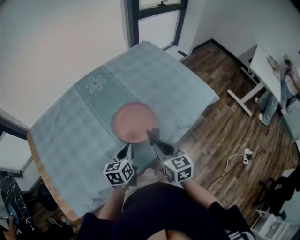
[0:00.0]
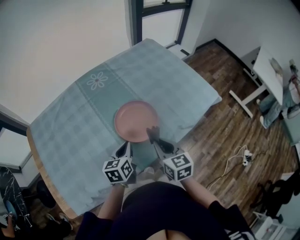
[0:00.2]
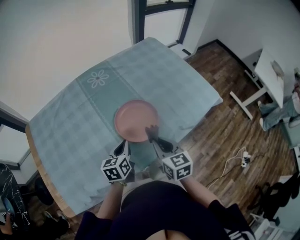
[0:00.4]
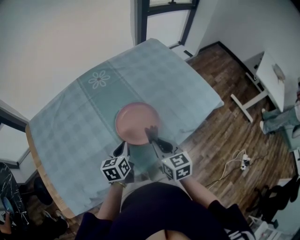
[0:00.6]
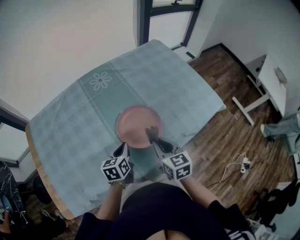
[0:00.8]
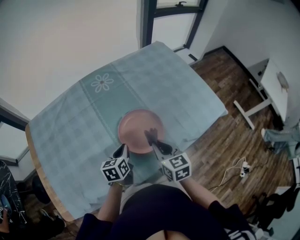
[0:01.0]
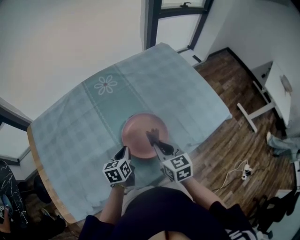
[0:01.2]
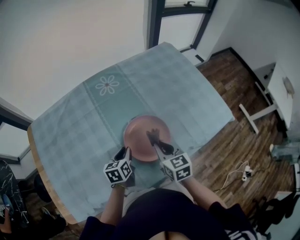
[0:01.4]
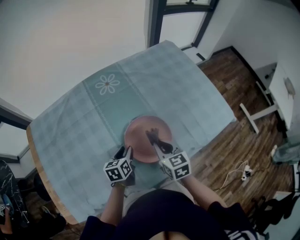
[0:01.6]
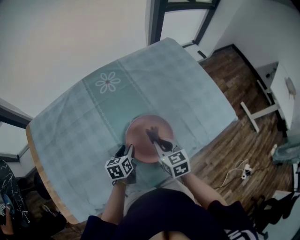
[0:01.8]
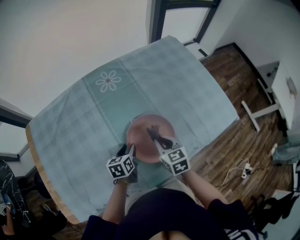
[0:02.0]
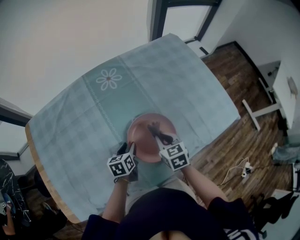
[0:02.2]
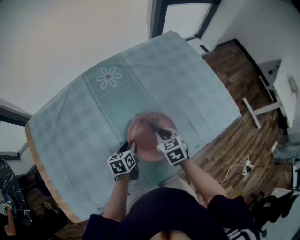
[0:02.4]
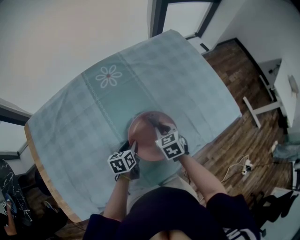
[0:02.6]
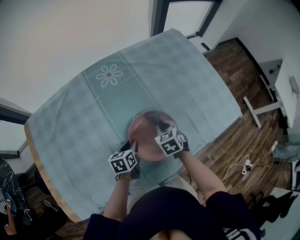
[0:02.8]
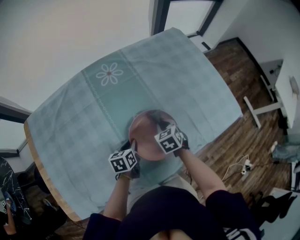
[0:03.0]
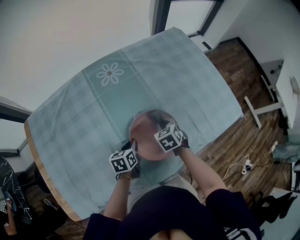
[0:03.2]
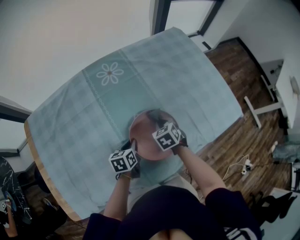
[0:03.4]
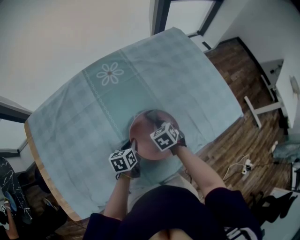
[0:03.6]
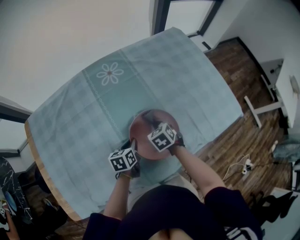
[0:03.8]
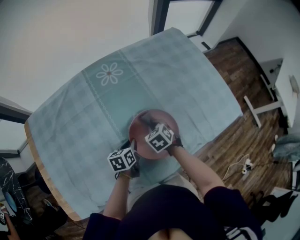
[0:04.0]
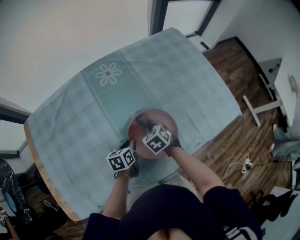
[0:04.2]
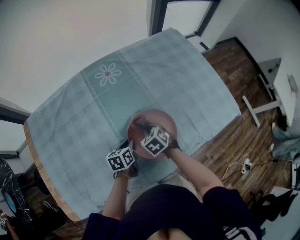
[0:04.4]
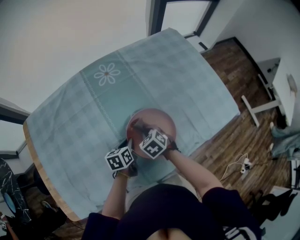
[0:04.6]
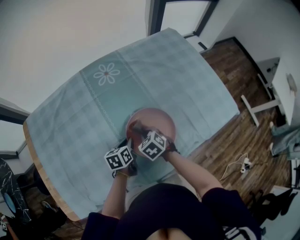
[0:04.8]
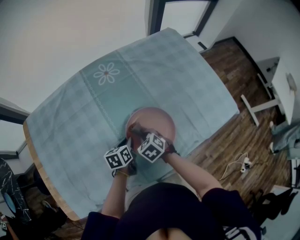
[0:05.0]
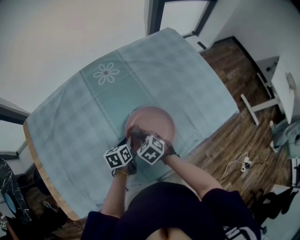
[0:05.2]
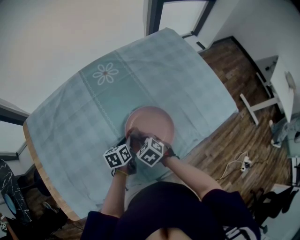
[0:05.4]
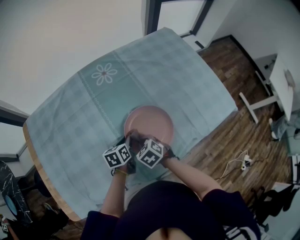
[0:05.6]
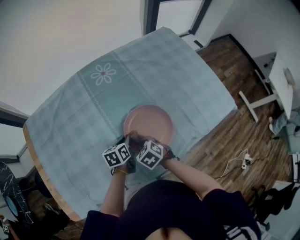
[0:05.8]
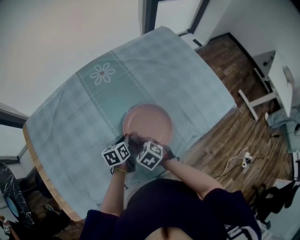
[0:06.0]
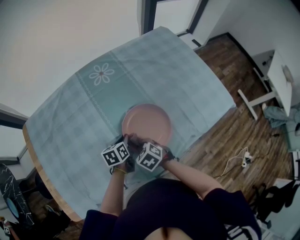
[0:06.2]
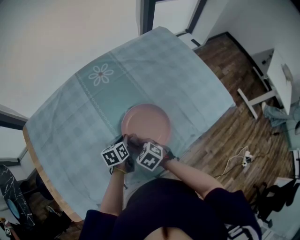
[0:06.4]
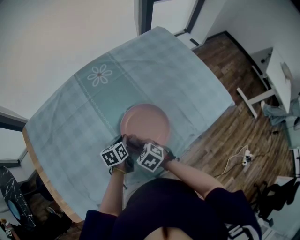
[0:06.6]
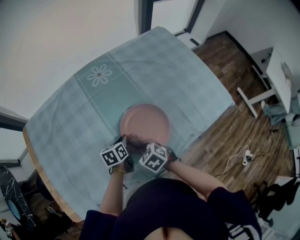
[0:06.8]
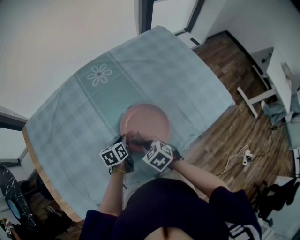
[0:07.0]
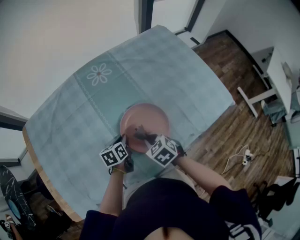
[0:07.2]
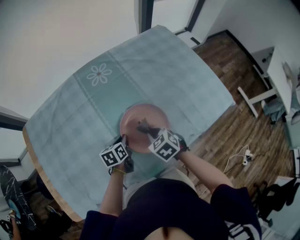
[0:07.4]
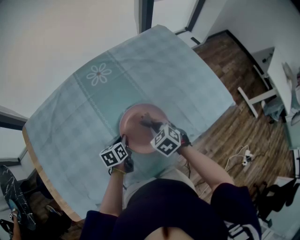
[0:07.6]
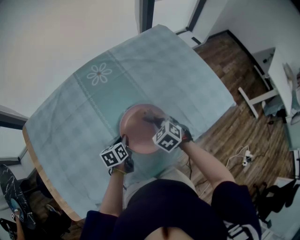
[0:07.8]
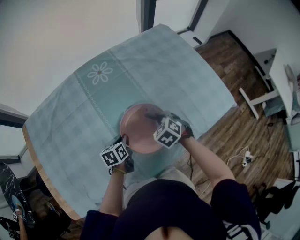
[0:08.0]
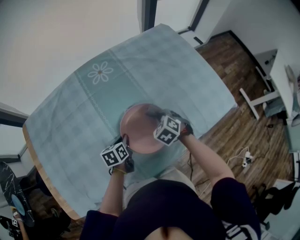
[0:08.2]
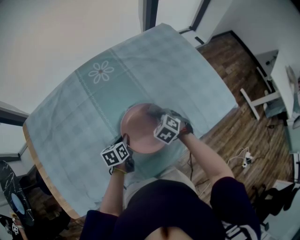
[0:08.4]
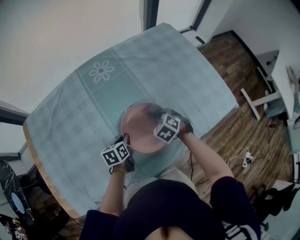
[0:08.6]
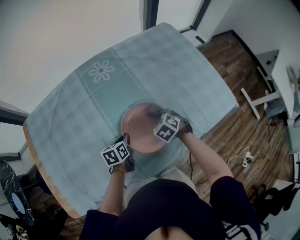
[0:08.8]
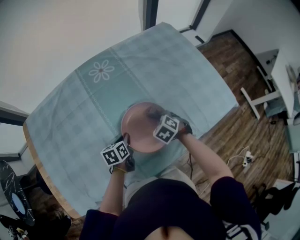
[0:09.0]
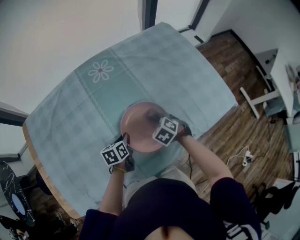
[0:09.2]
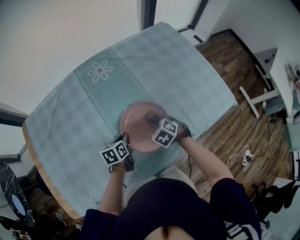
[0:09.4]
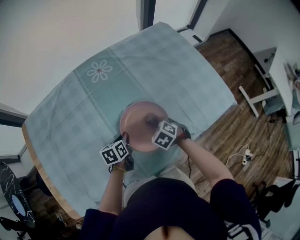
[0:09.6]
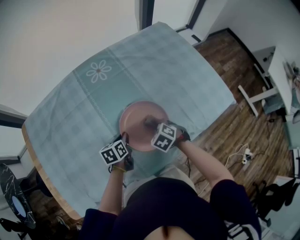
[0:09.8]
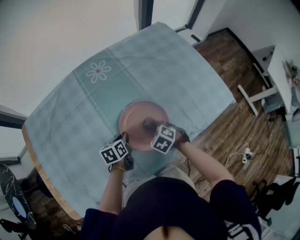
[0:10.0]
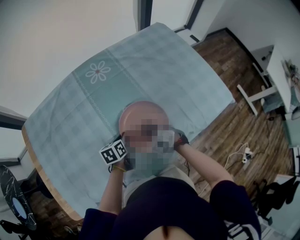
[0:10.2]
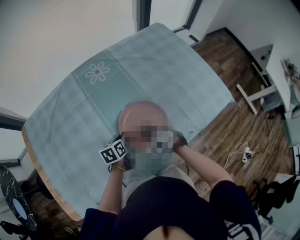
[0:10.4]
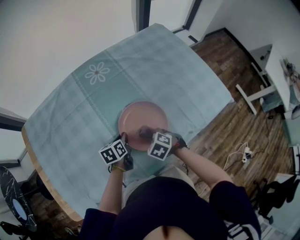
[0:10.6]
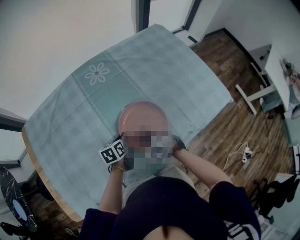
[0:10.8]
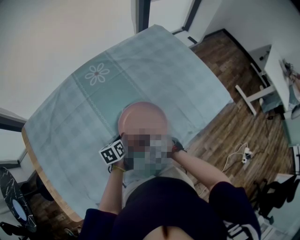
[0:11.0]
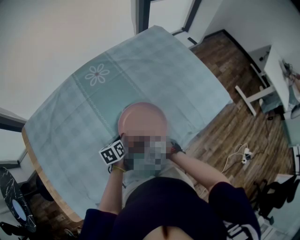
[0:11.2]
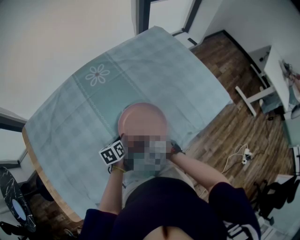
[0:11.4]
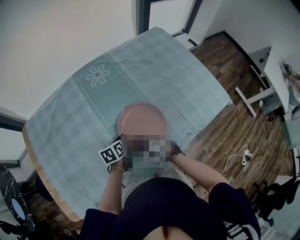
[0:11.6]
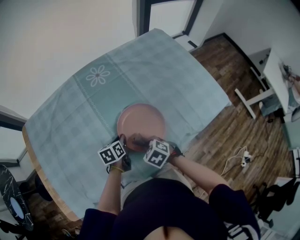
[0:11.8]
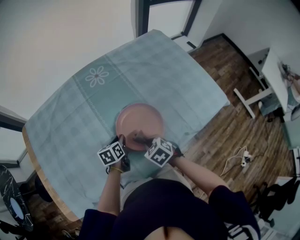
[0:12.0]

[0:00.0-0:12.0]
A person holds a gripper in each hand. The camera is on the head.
0:00.0 to 0:01.6: The right gripper heads forward, covering about 15 cm. The left gripper shifts approximately 15 cm forward, downward and to the left, and opens.
0:01.6 to 0:03.0: The left gripper ends up roughly 5 cm from where it was. Meanwhile the right gripper shifts some 15 cm downward and forward, and turns by roughly 30 degrees.
0:03.0 to 0:04.4: The right gripper travels to the left by about 5 cm.
0:04.4 to 0:06.0: The right gripper shifts roughly 10 cm backward.
0:06.0 to 0:07.6: The right gripper heads to the right and forward, covering some 10 cm.
0:07.6 to 0:09.0: The right gripper moves some 5 cm.
0:09.0 to 0:10.4: The right gripper is displaced backward by roughly 10 cm.
0:10.4 to 0:12.0: The right gripper changes place by roughly 5 cm.

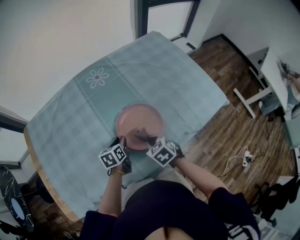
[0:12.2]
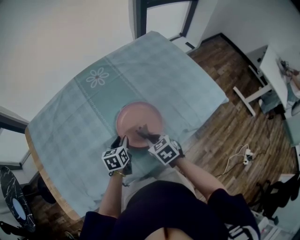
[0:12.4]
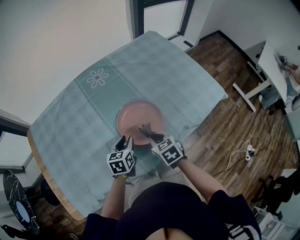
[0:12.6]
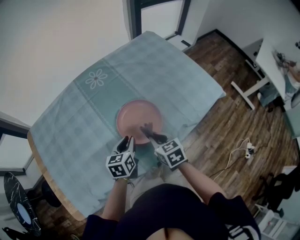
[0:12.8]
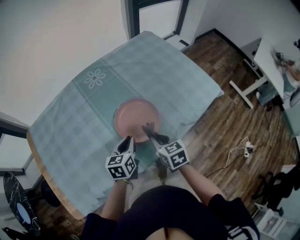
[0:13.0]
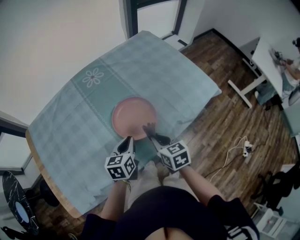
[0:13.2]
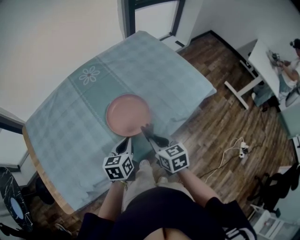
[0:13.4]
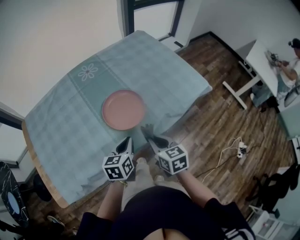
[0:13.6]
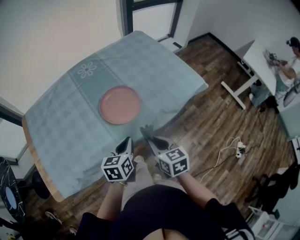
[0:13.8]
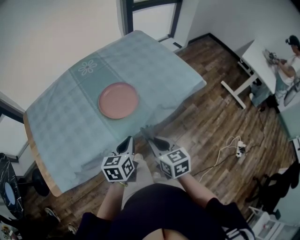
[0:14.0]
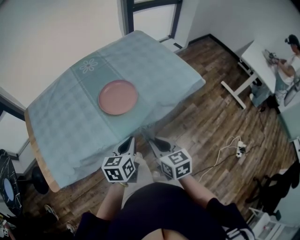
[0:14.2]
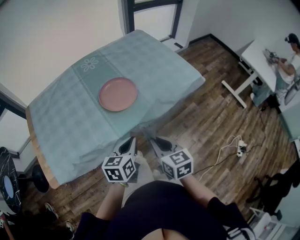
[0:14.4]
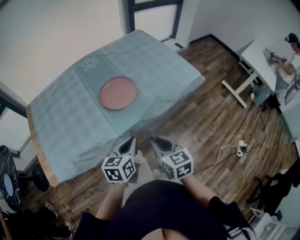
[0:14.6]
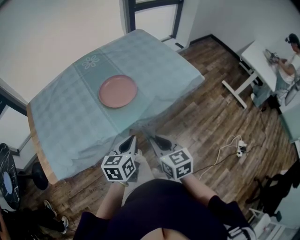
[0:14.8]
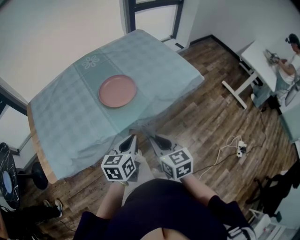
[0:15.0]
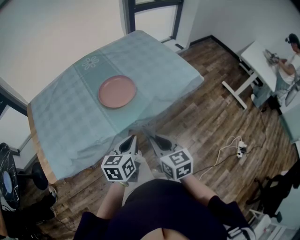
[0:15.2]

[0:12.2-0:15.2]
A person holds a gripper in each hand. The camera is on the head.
0:12.2 to 0:13.8: The grippers both shift backward, upward and to the right by about 25 cm. The left gripper closes. Meanwhile the right gripper changes its angle by some 40 degrees.
0:13.8 to 0:15.2: The right gripper is displaced backward by approximately 10 cm. Meanwhile the left gripper shifts some 15 cm backward and to the right.

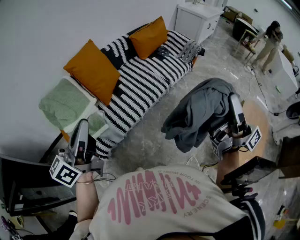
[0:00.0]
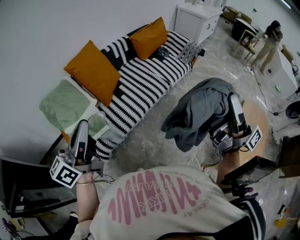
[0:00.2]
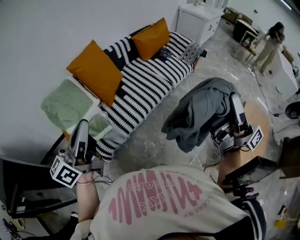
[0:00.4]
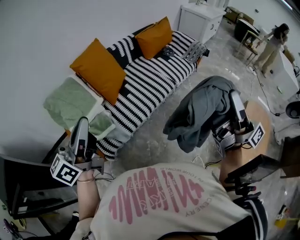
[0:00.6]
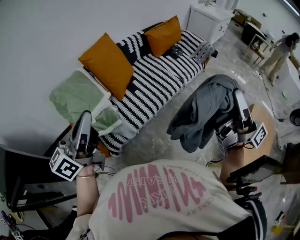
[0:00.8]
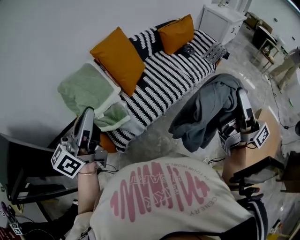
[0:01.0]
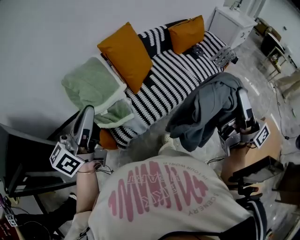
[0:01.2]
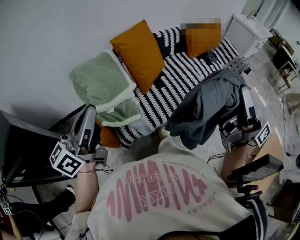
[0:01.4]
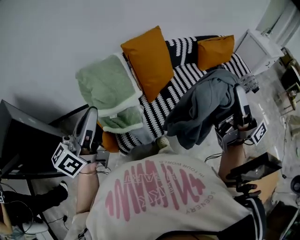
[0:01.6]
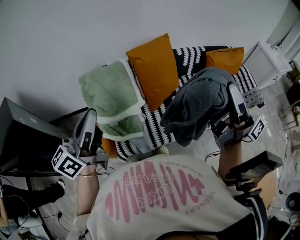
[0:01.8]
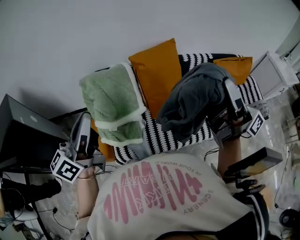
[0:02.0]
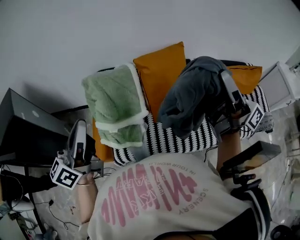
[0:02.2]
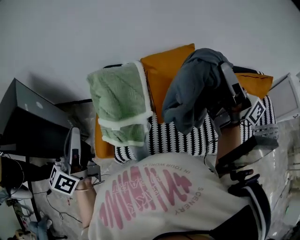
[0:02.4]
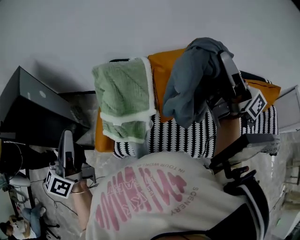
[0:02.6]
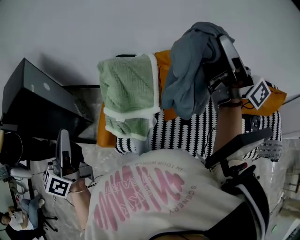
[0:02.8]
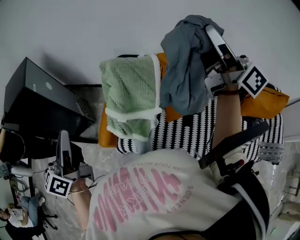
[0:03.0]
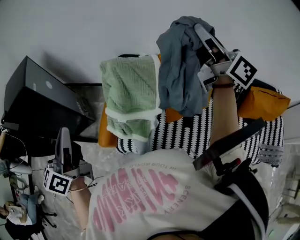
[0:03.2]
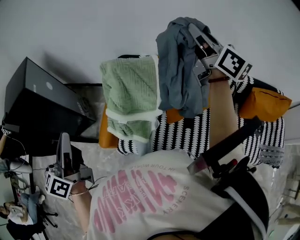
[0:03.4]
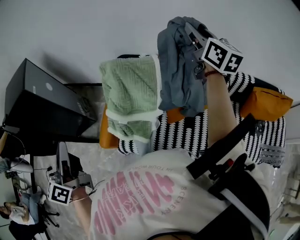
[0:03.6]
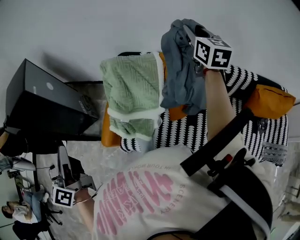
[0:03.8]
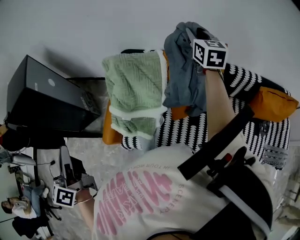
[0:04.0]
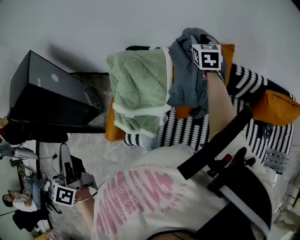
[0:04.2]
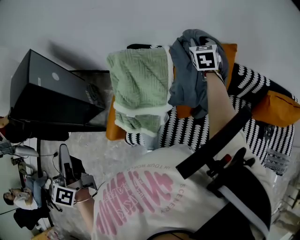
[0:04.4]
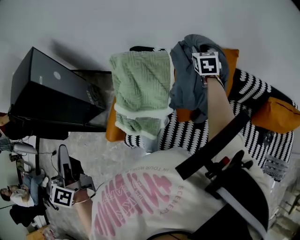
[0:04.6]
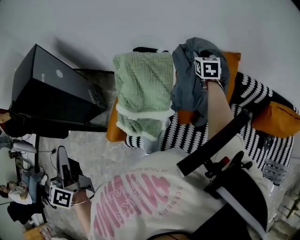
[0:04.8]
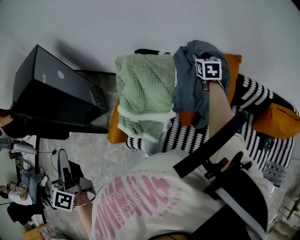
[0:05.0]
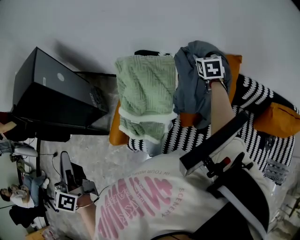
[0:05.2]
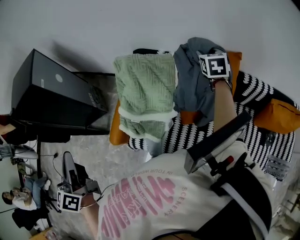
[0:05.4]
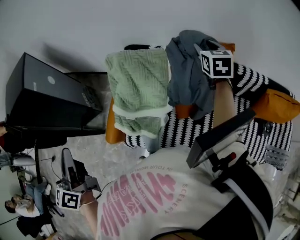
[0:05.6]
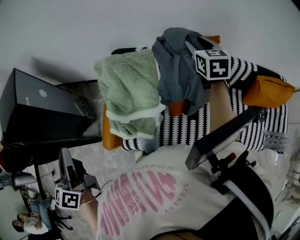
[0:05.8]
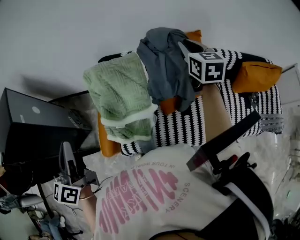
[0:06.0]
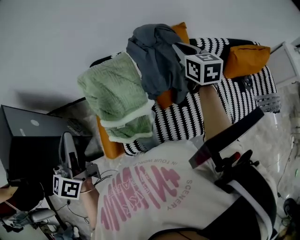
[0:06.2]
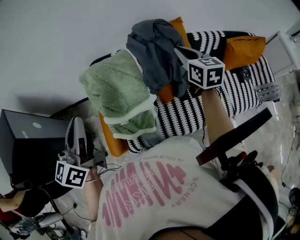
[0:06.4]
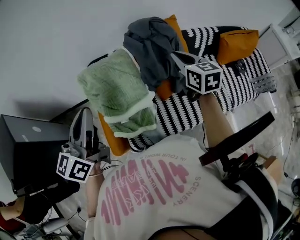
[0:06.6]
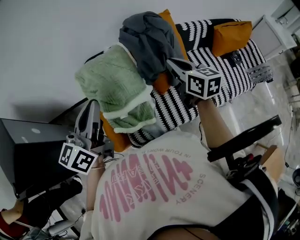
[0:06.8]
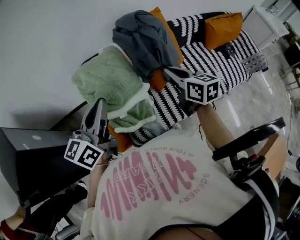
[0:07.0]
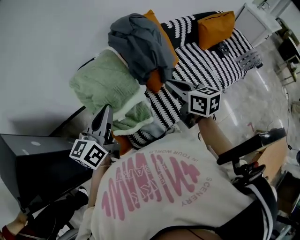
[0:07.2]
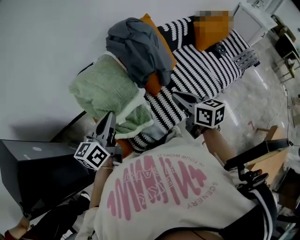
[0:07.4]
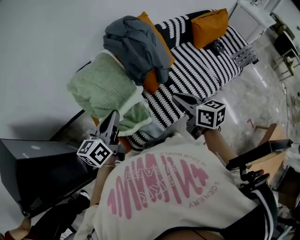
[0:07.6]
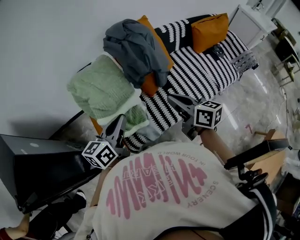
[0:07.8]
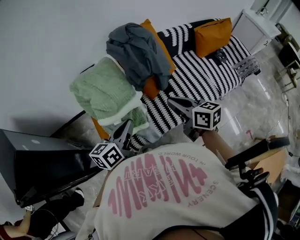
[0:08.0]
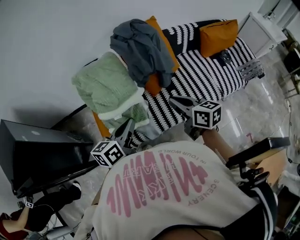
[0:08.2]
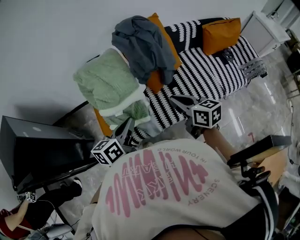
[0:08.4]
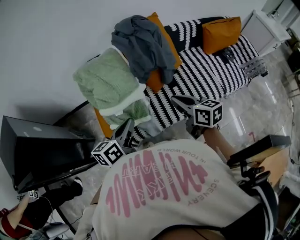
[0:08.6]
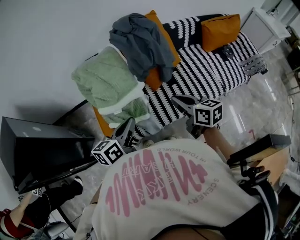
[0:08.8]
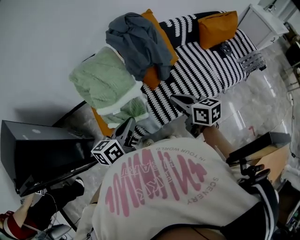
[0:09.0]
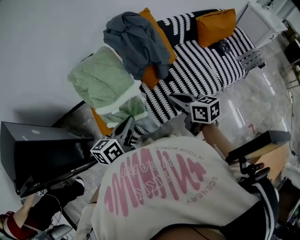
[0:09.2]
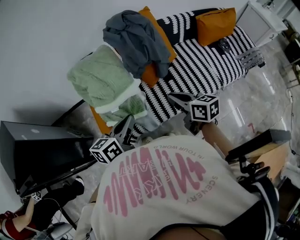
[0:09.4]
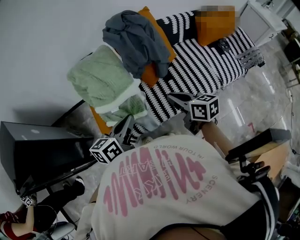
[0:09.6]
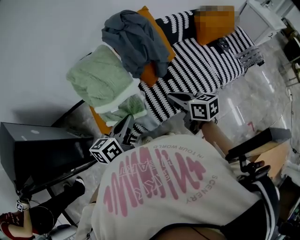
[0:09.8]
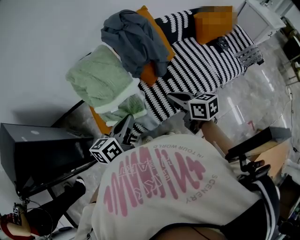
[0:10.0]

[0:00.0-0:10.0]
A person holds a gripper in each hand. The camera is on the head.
0:00.0 to 0:01.4: The left gripper goes to the left and returns, roughly 5 cm each way.
0:01.4 to 0:02.8: The right gripper changes place by approximately 20 cm. Meanwhile the left gripper shifts by about 5 cm, and swivels roughly 30 degrees.
0:02.8 to 0:04.2: The left gripper travels to the left by some 5 cm, and rotates approximately 20 degrees, while the right gripper heads forward and downward, covering approximately 35 cm, and tilts its fingers approximately 60 degrees downward.
0:04.2 to 0:05.8: The right gripper moves backward, some 5 cm, goes downward and returns, approximately 10 cm each way, and opens, while the left gripper travels forward by roughly 5 cm.
0:05.8 to 0:07.2: The right gripper moves approximately 35 cm, rotates roughly 40 degrees, and closes, while the left gripper changes place by about 15 cm, and changes its angle by approximately 60 degrees.
0:07.2 to 0:08.6: The left gripper heads downward, backward and to the right, covering about 15 cm; the right gripper heads backward, covering about 5 cm.
0:08.6 to 0:10.0: The grippers move only a little.
